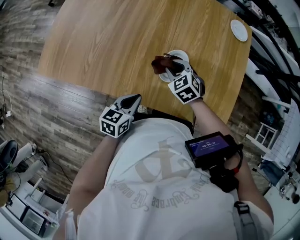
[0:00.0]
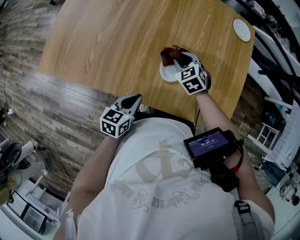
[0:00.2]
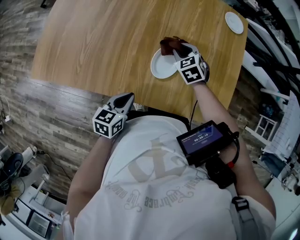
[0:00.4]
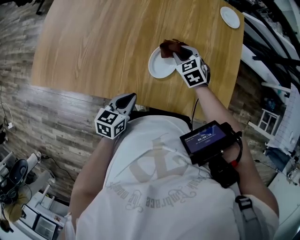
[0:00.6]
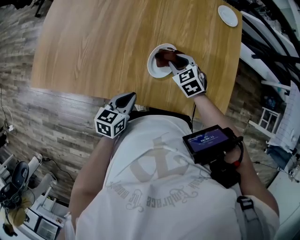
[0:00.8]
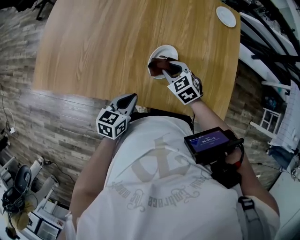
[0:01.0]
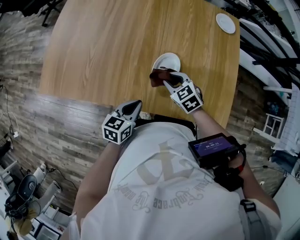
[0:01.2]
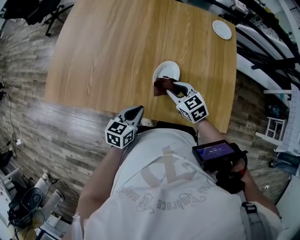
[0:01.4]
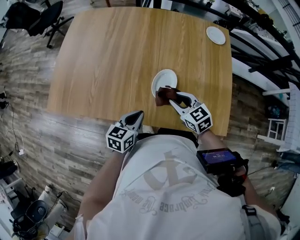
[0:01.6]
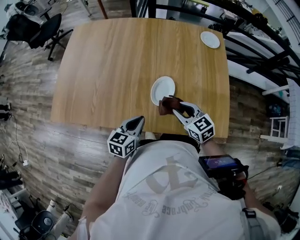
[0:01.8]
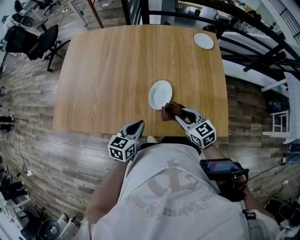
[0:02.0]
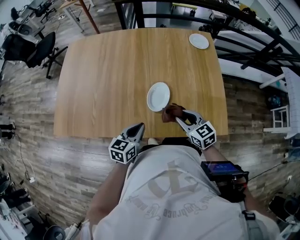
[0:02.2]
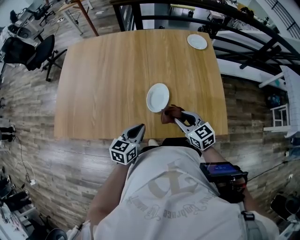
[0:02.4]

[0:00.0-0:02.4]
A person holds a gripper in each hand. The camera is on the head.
0:00.0 to 0:01.2: The right gripper reaches approximately 5 cm forward, then returns.
0:01.2 to 0:02.4: The right gripper is displaced backward, upward and to the right by roughly 15 cm, and turns by about 30 degrees.

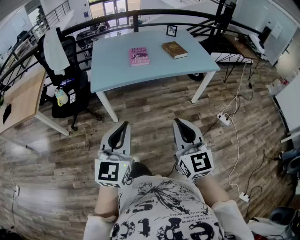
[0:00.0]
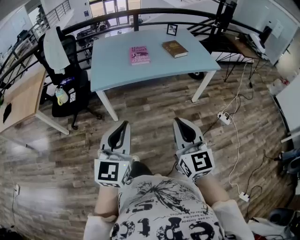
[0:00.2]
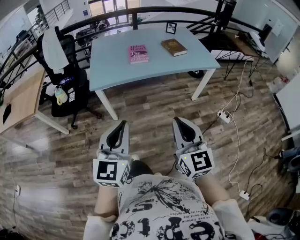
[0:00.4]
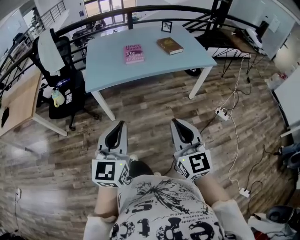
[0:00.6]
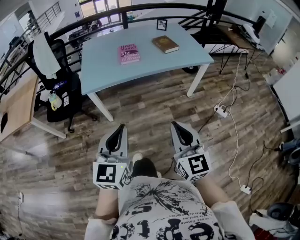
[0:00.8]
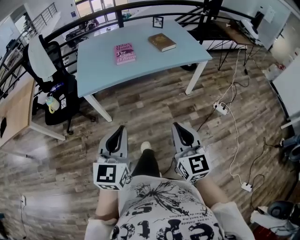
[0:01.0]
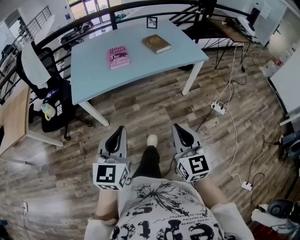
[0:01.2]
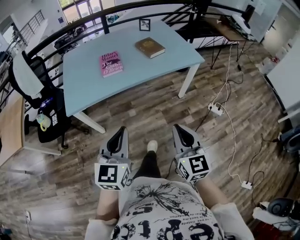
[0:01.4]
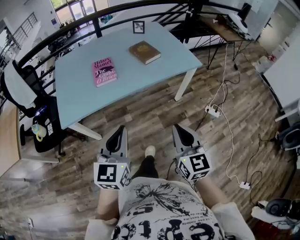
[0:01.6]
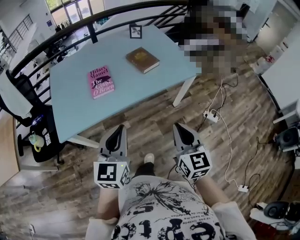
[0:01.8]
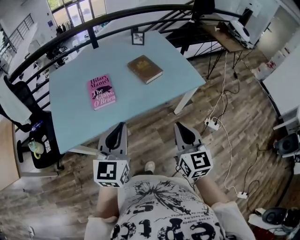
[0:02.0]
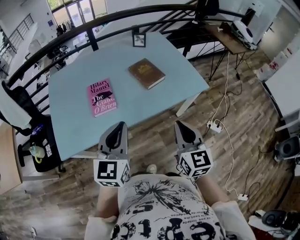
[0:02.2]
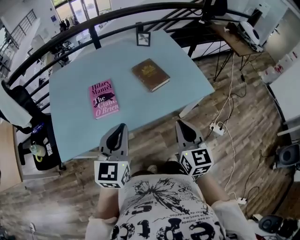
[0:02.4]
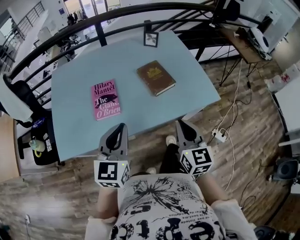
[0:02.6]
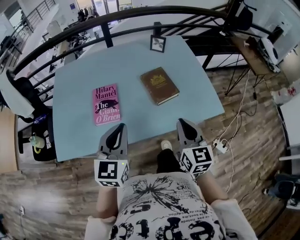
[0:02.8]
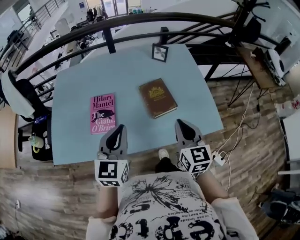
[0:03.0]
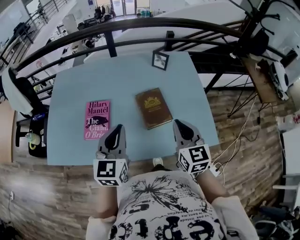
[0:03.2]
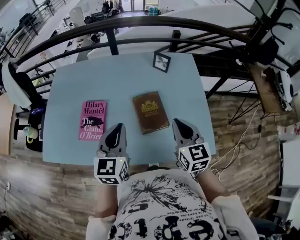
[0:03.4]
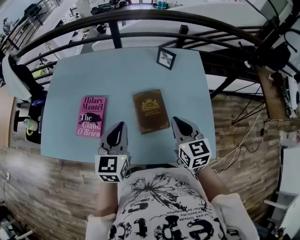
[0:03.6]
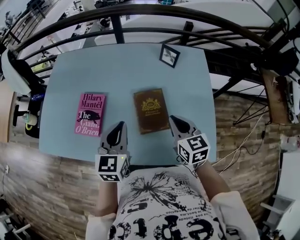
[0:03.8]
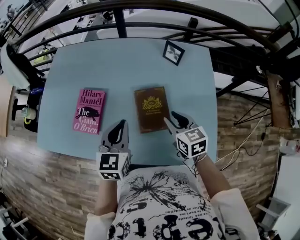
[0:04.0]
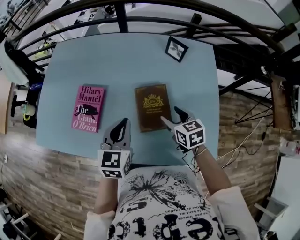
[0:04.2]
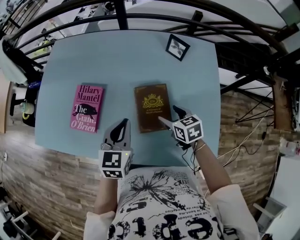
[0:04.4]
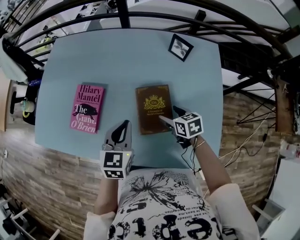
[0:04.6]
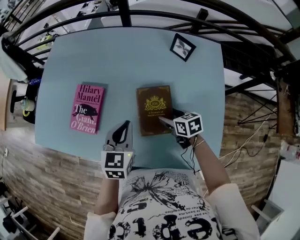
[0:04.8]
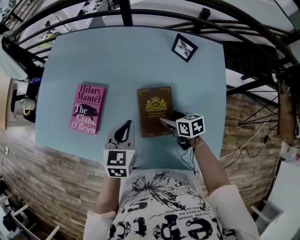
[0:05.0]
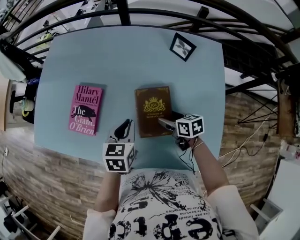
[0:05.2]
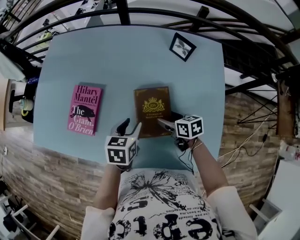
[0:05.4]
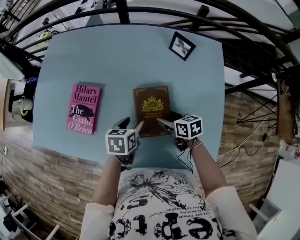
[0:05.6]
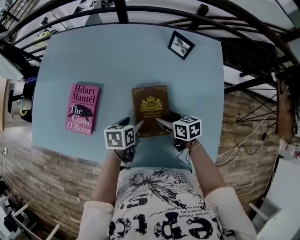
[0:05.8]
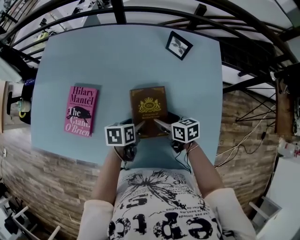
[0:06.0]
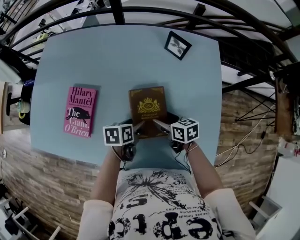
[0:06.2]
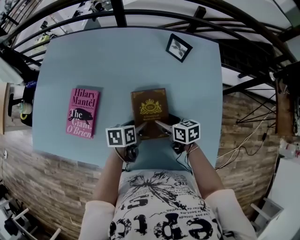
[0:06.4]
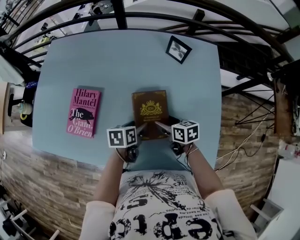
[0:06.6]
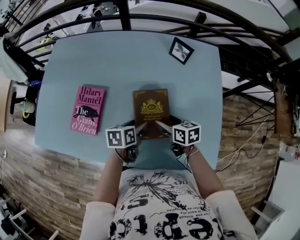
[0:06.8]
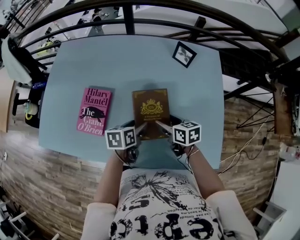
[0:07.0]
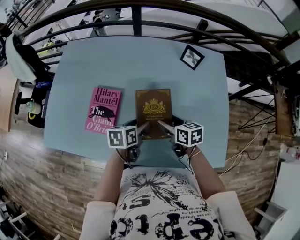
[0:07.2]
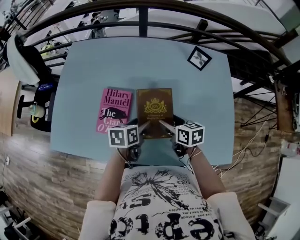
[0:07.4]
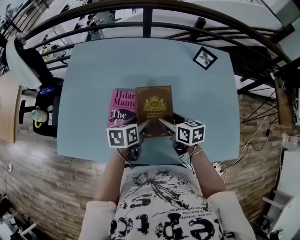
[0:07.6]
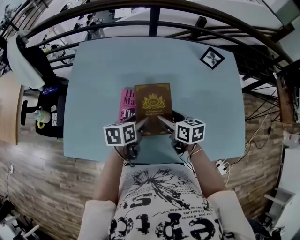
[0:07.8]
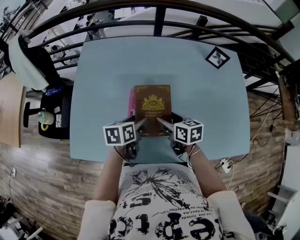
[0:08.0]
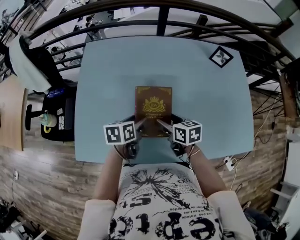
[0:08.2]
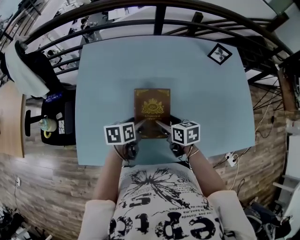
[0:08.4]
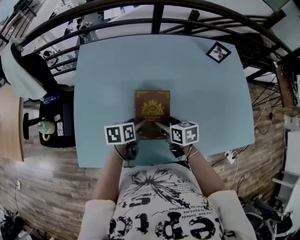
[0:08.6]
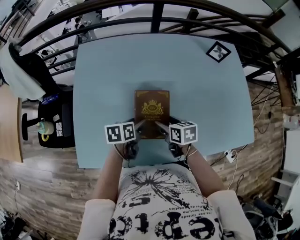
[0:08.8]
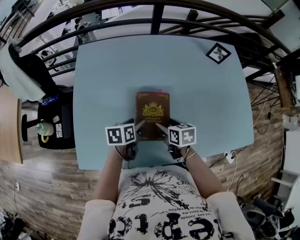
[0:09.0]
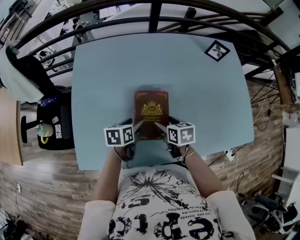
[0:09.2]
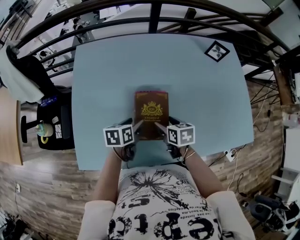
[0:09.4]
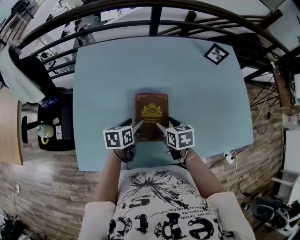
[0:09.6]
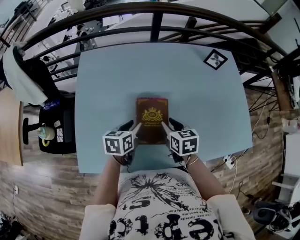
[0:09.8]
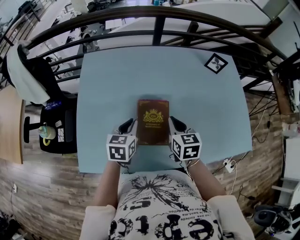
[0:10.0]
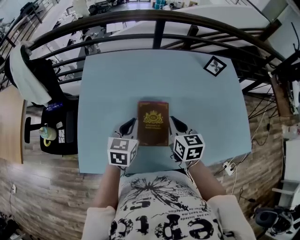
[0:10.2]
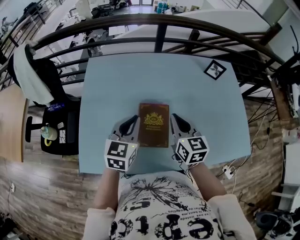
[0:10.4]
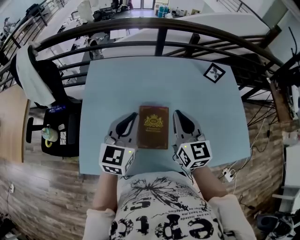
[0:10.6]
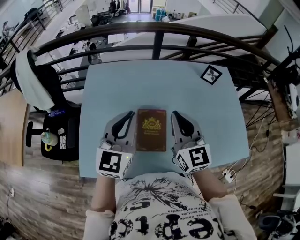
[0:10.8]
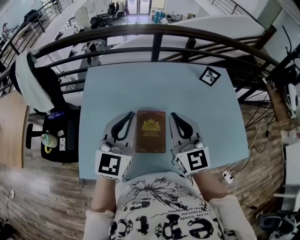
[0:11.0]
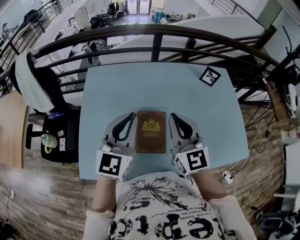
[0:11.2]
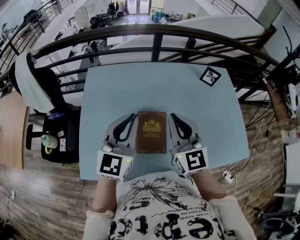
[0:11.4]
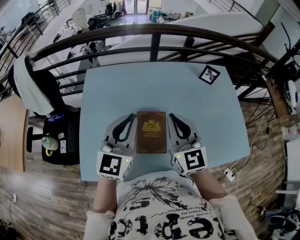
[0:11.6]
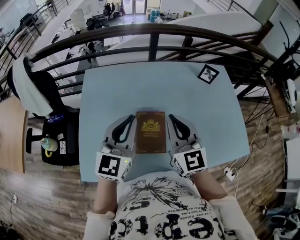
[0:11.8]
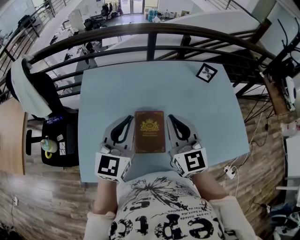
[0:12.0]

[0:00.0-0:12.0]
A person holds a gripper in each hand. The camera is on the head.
0:00.0 to 0:01.6: Both grippers travel together forward and to the right, approximately 25 cm.
0:01.6 to 0:03.0: The pair of grippers is taken forward, roughly 50 cm.
0:03.0 to 0:04.4: The right gripper moves approximately 30 cm, swivels about 50 degrees, and opens its fingers. Meanwhile the left gripper shifts by approximately 20 cm, and rotates roughly 20 degrees.
0:04.4 to 0:06.0: The left gripper heads downward, covering approximately 15 cm, rotates some 50 degrees, and opens. Meanwhile the right gripper heads downward, covering roughly 5 cm.
0:06.0 to 0:07.6: Both grippers travel together to the left and upward, approximately 25 cm.
0:07.6 to 0:09.0: Both grippers travel together to the left, some 15 cm.
0:09.0 to 0:10.4: The grippers both shift upward by approximately 20 cm. The left gripper changes its angle by some 50 degrees, and closes up. The right gripper changes its angle by some 40 degrees, and closes up.
0:10.4 to 0:12.0: Both grippers travel together upward, approximately 10 cm. The left gripper swivels some 20 degrees; the right gripper turns by roughly 20 degrees.

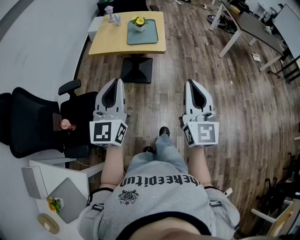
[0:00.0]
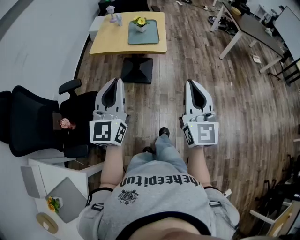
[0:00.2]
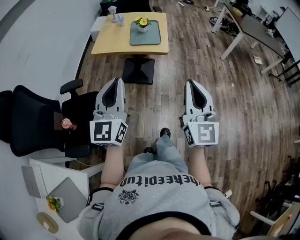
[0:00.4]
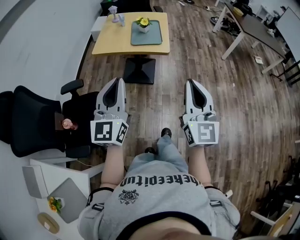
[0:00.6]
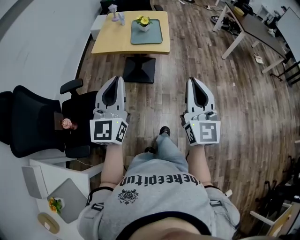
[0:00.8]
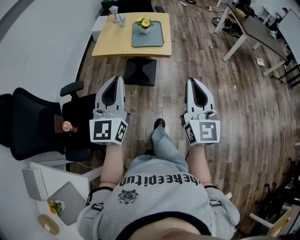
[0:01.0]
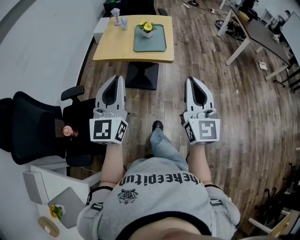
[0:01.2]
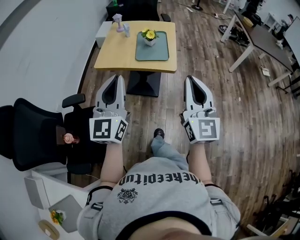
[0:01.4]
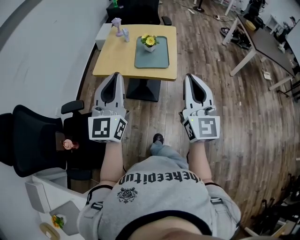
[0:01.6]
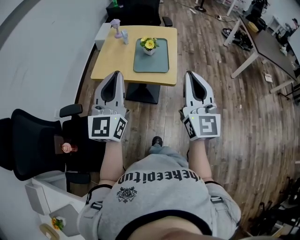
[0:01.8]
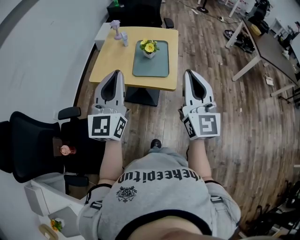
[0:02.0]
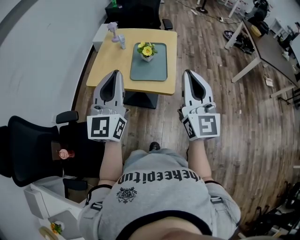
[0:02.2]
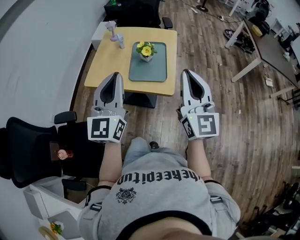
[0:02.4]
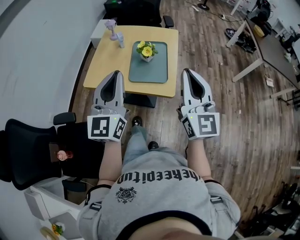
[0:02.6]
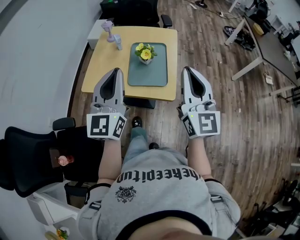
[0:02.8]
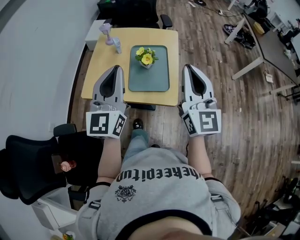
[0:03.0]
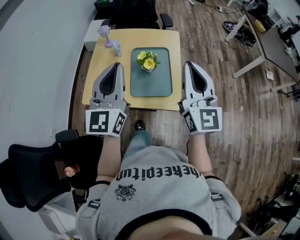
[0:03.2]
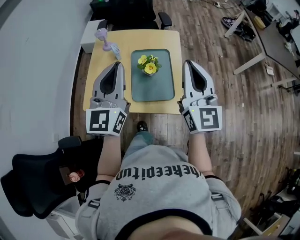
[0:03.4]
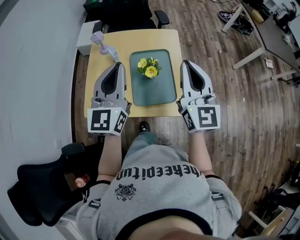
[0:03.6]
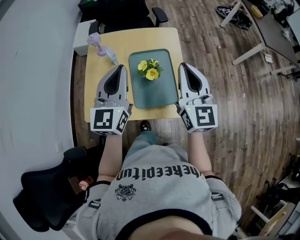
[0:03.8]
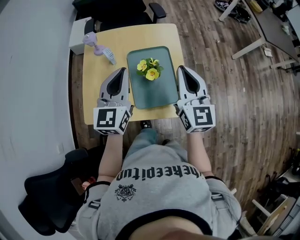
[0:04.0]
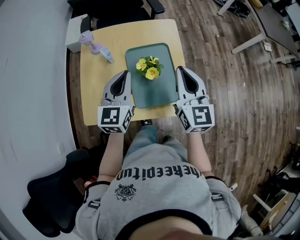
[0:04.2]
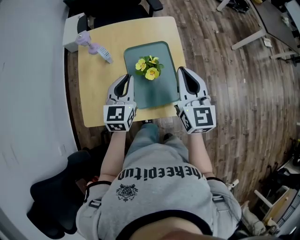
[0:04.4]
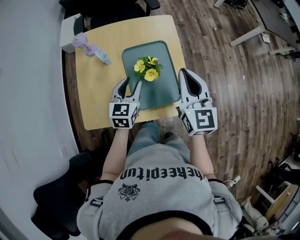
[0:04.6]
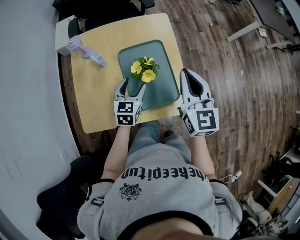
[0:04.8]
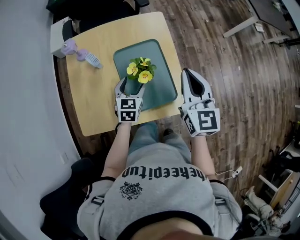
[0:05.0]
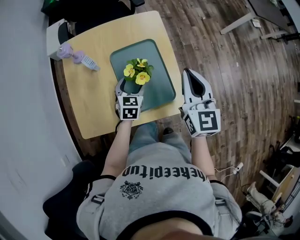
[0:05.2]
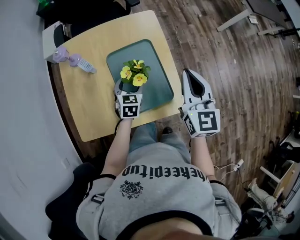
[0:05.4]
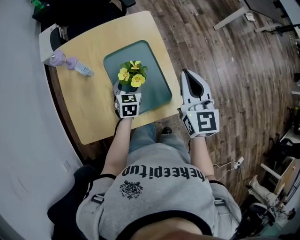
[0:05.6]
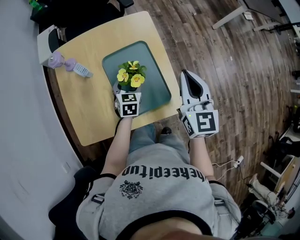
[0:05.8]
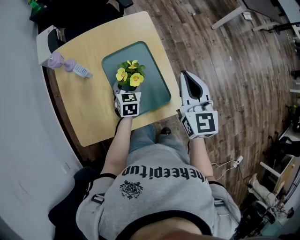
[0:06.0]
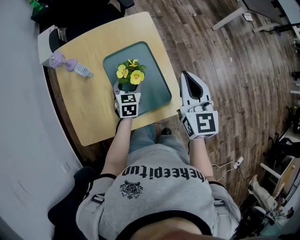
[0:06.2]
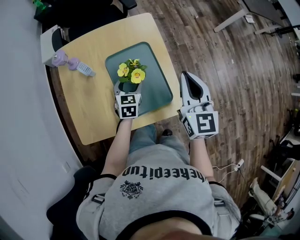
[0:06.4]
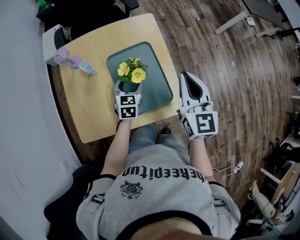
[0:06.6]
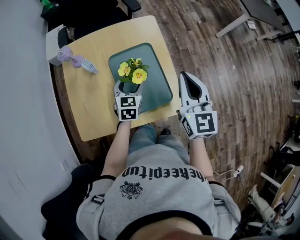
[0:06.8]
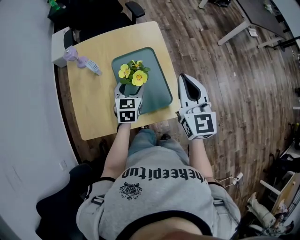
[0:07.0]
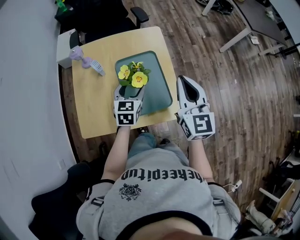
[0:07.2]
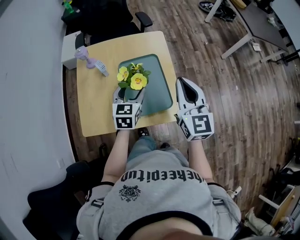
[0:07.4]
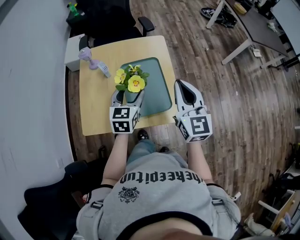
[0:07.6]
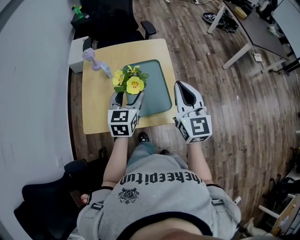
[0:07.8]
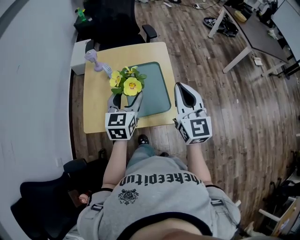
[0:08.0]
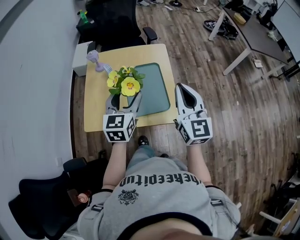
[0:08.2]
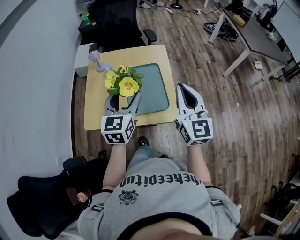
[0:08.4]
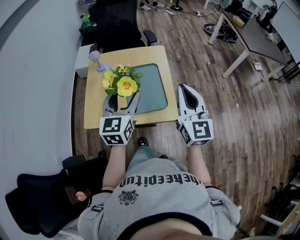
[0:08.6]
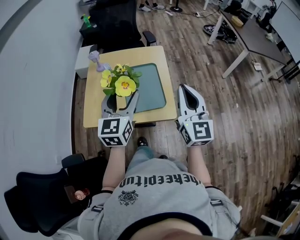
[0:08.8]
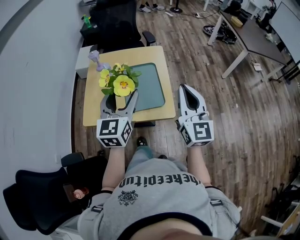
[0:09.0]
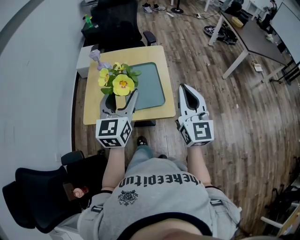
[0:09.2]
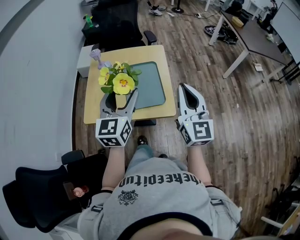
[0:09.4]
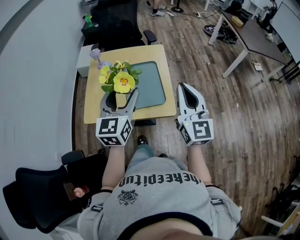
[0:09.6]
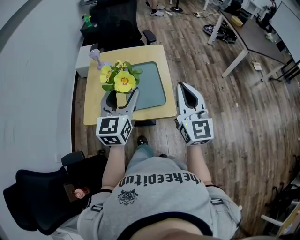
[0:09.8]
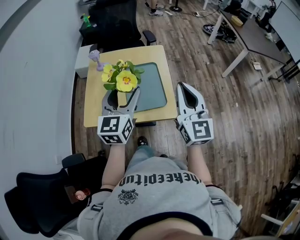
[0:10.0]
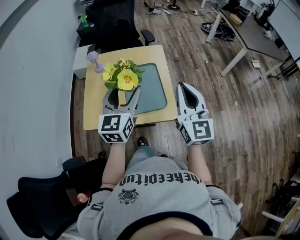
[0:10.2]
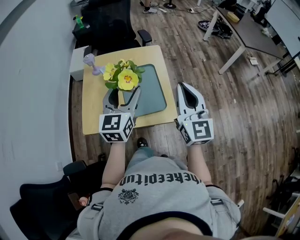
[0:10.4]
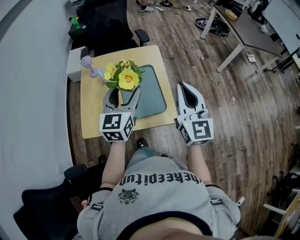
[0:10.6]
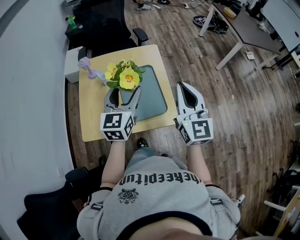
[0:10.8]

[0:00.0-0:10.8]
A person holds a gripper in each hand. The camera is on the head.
0:00.0 to 0:01.6: Both grippers move forward, about 25 cm.
0:01.6 to 0:03.0: Both grippers travel together forward, about 25 cm.
0:03.0 to 0:04.6: The right gripper heads forward and downward, covering about 25 cm, and turns by some 30 degrees. The left gripper moves downward and forward, about 35 cm, tilts its fingers roughly 40 degrees downward, and opens its fingers.
0:04.6 to 0:06.2: The left gripper is displaced downward and forward by roughly 10 cm, and opens up, while the right gripper moves to the right, roughly 5 cm.
0:06.2 to 0:07.8: The right gripper heads backward and upward, covering some 10 cm. Meanwhile the left gripper goes about 25 cm upward and backward, and rotates roughly 20 degrees.
0:07.8 to 0:09.2: The left gripper travels upward and backward by some 20 cm. The right gripper travels backward, upward and to the right by about 15 cm.
0:09.2 to 0:10.8: The right gripper goes roughly 10 cm forward; the left gripper moves forward and downward, roughly 15 cm.
